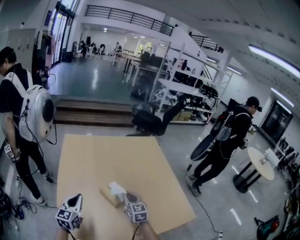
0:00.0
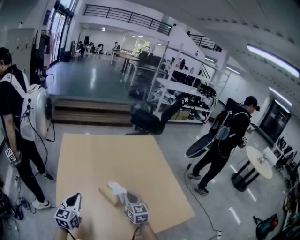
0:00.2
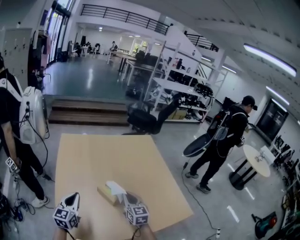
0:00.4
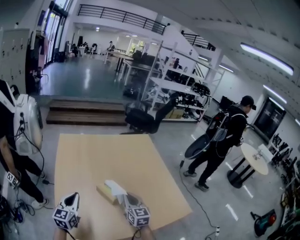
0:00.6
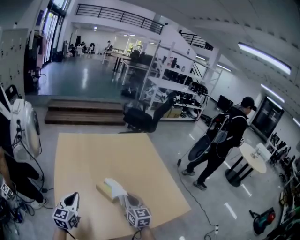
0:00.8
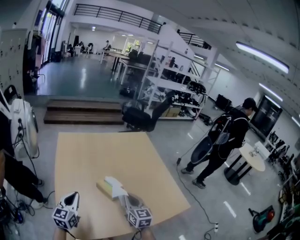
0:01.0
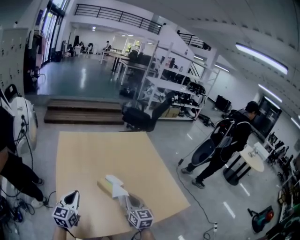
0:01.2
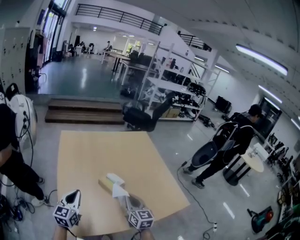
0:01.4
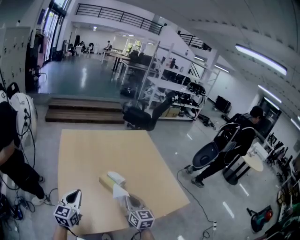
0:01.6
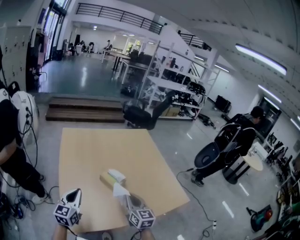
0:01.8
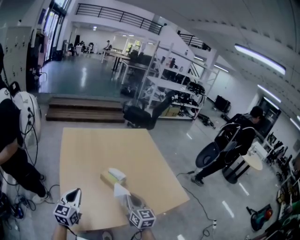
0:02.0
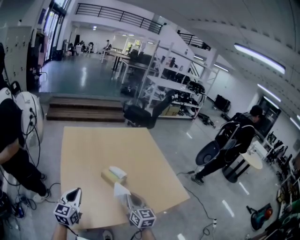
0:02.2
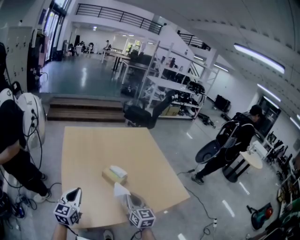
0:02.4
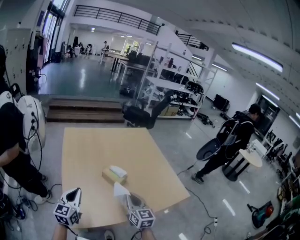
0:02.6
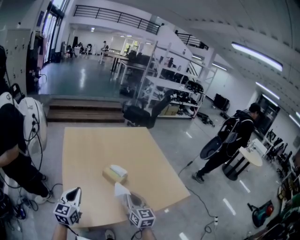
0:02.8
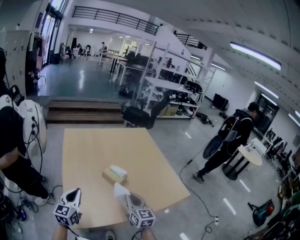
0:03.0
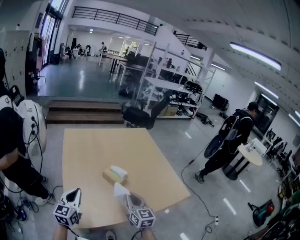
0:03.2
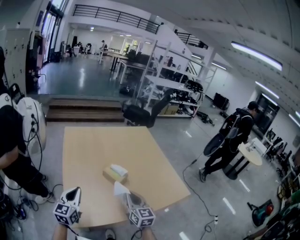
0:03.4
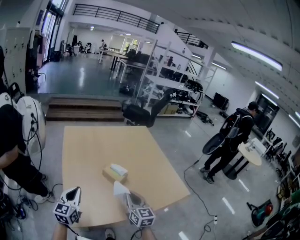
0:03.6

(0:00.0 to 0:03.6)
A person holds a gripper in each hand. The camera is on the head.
0:00.0 - 0:01.8: The right gripper travels backward by approximately 15 cm, while the left gripper is displaced backward by about 5 cm.
0:01.8 - 0:03.6: There are only small adjustments of the grippers.

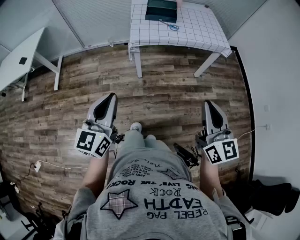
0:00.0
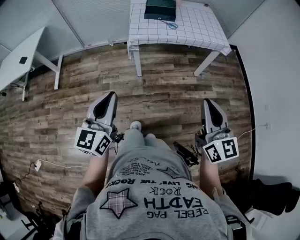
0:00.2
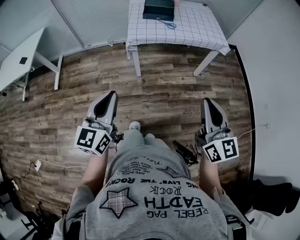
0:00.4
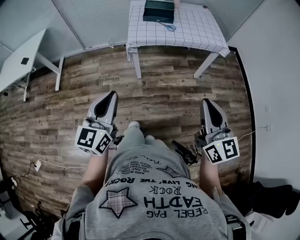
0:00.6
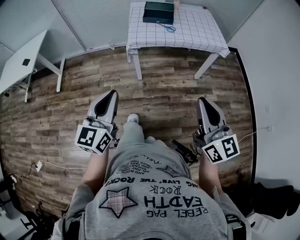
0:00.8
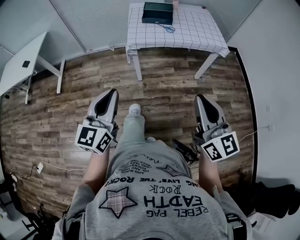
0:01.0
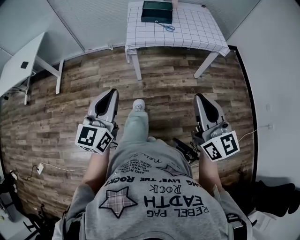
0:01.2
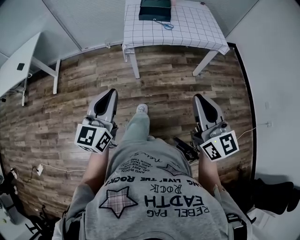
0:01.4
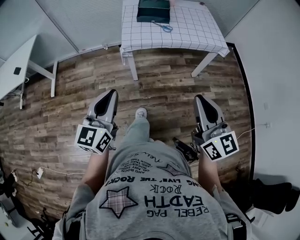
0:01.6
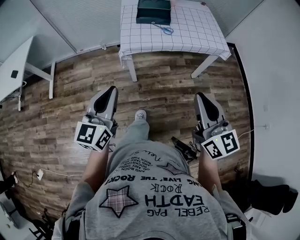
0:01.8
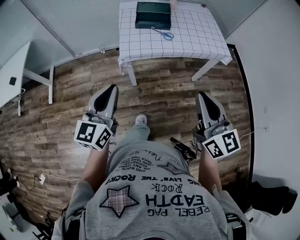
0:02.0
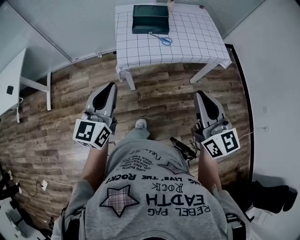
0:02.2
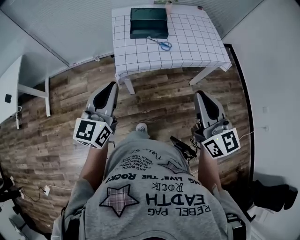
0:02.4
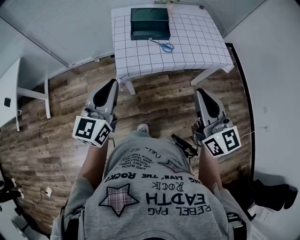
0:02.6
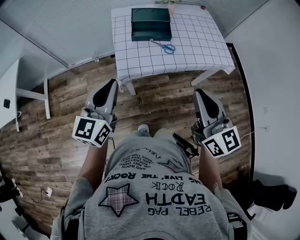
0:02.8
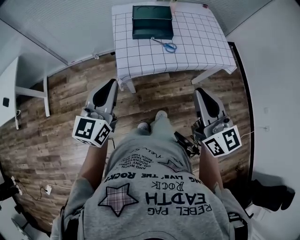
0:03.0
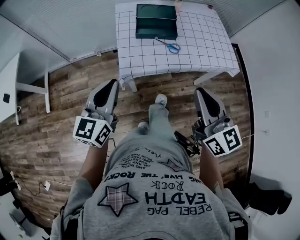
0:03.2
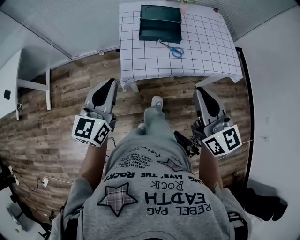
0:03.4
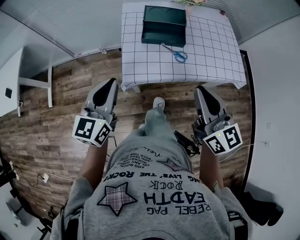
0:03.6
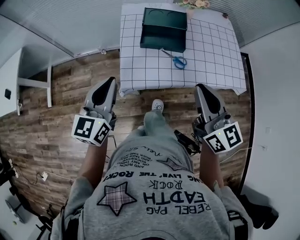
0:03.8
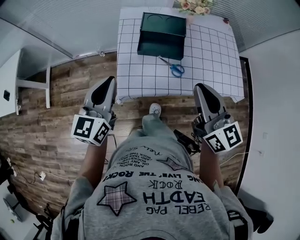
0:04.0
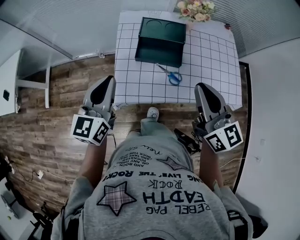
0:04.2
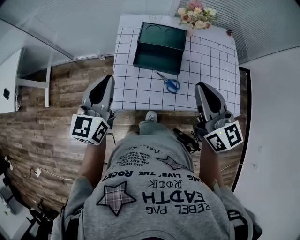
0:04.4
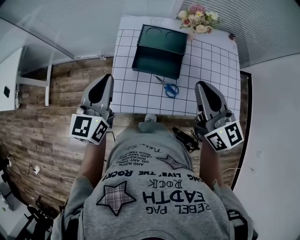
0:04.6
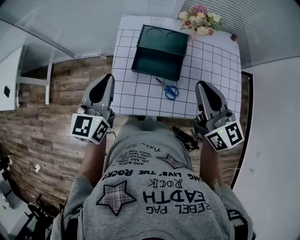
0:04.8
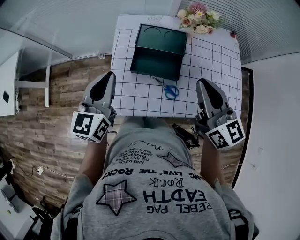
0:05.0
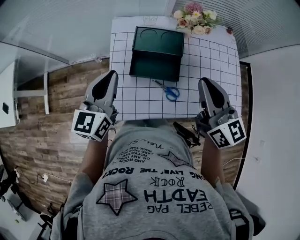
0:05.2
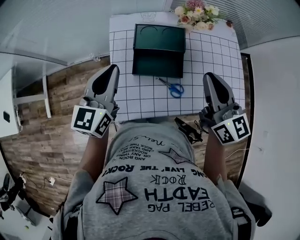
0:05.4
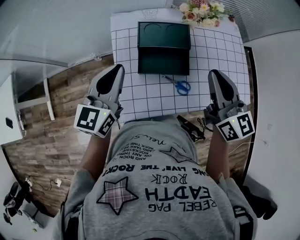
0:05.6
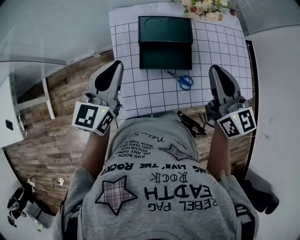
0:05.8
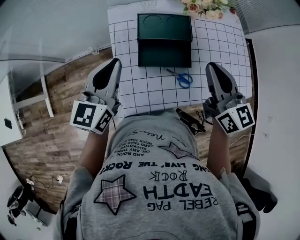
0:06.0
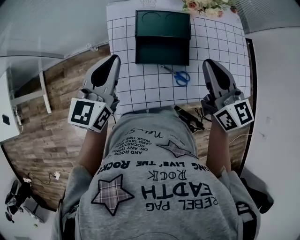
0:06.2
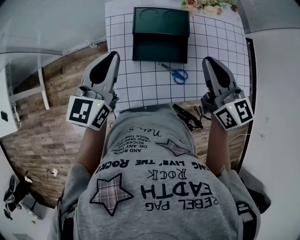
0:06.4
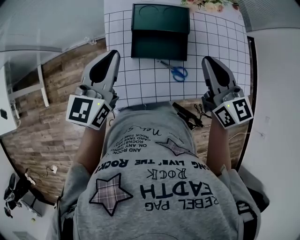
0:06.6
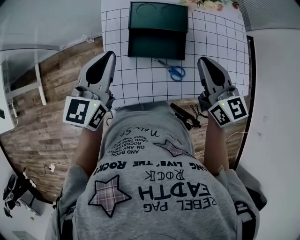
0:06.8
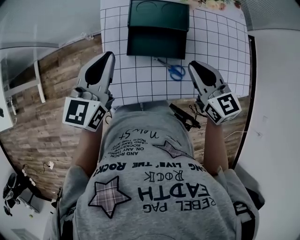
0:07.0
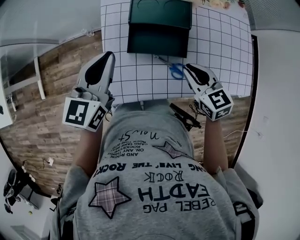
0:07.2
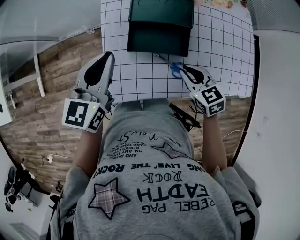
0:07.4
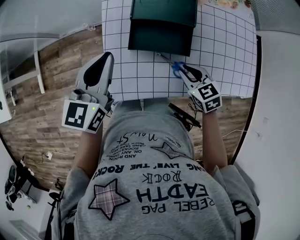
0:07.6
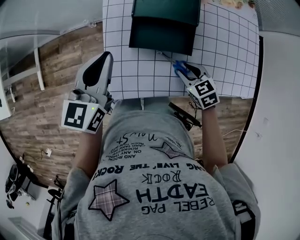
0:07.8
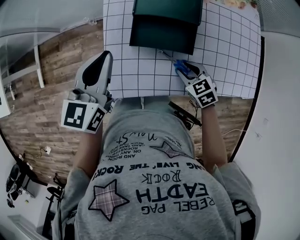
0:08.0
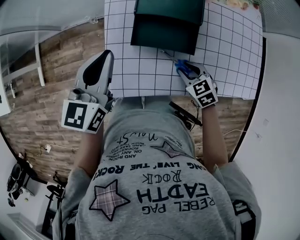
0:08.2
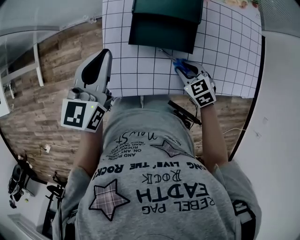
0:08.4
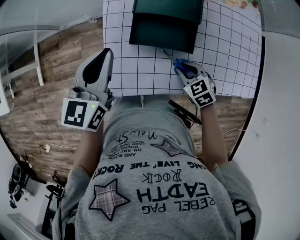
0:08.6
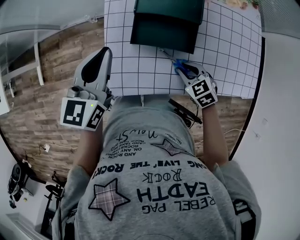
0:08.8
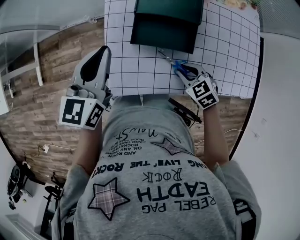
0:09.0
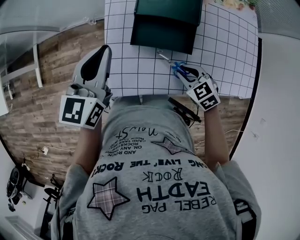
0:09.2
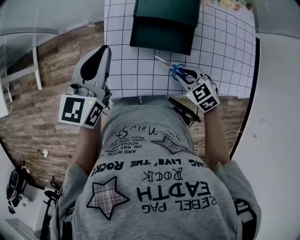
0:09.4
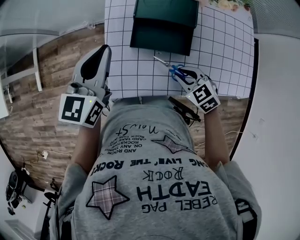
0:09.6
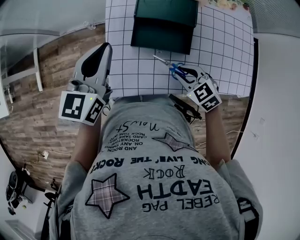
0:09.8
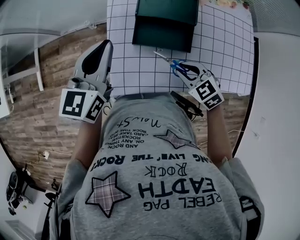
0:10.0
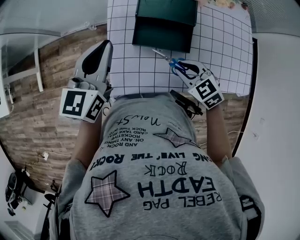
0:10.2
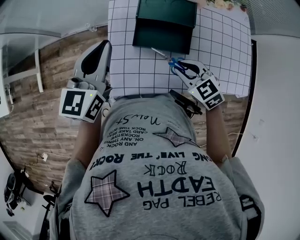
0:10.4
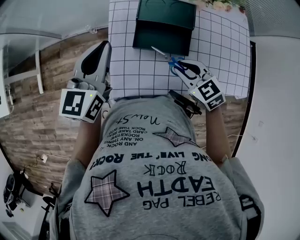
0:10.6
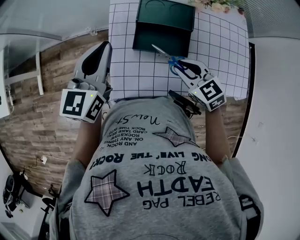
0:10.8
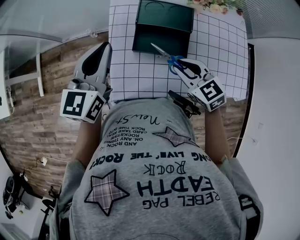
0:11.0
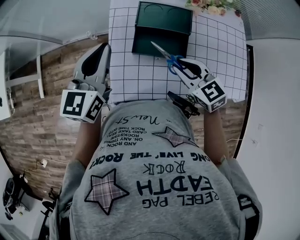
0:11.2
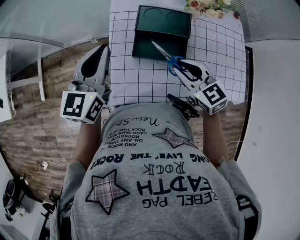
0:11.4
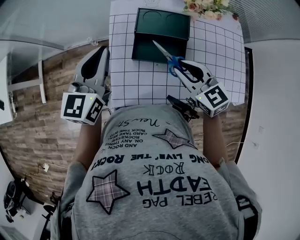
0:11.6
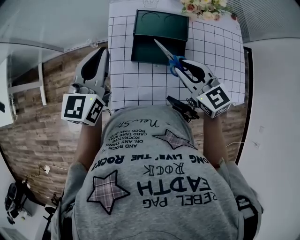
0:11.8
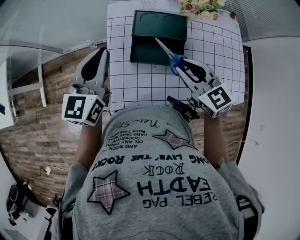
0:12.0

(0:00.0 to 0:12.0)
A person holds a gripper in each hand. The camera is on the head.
0:00.0 - 0:01.6: Both grippers move forward, some 5 cm.
0:01.6 - 0:03.0: The two grippers go roughly 25 cm forward.
0:03.0 - 0:04.4: The grippers both shift forward by about 25 cm.
0:04.4 - 0:06.0: The two grippers go about 10 cm forward.
0:06.0 - 0:07.6: The right gripper shifts approximately 25 cm downward, and tips its fingers downward by roughly 40 degrees. Meanwhile the left gripper changes place by roughly 5 cm.
0:07.6 - 0:09.0: The grippers move only a little.
0:09.0 - 0:10.4: The right gripper goes roughly 10 cm upward.
0:10.4 - 0:12.0: The right gripper is displaced upward by roughly 10 cm, and changes its angle by about 20 degrees.

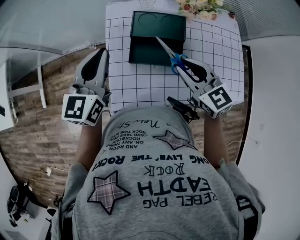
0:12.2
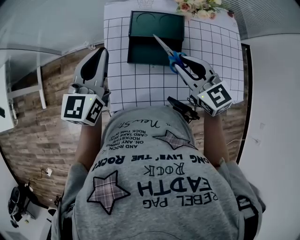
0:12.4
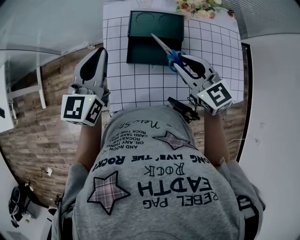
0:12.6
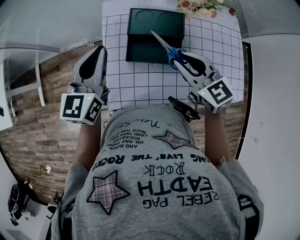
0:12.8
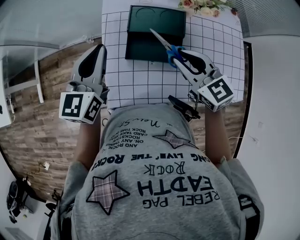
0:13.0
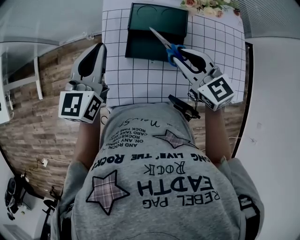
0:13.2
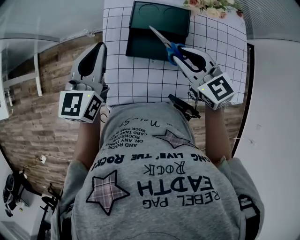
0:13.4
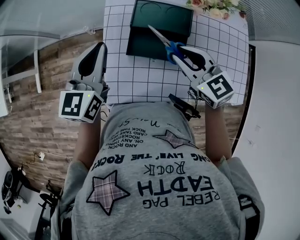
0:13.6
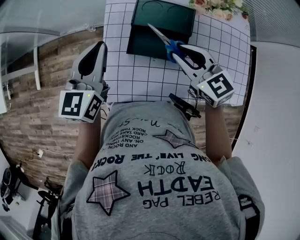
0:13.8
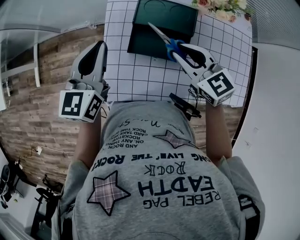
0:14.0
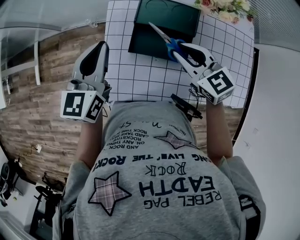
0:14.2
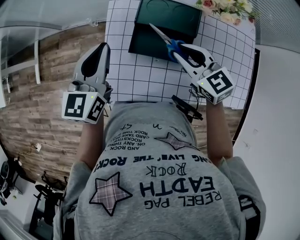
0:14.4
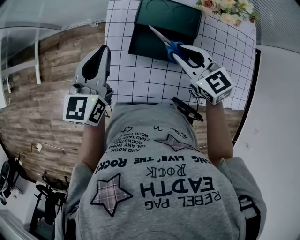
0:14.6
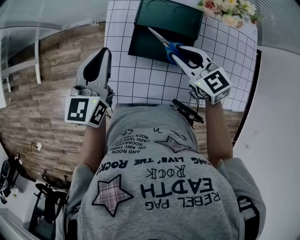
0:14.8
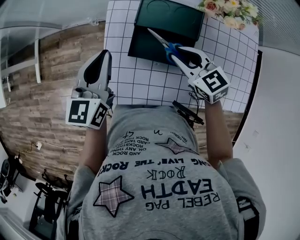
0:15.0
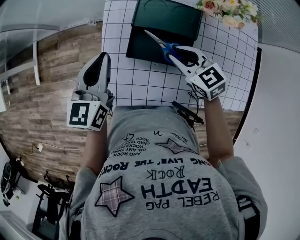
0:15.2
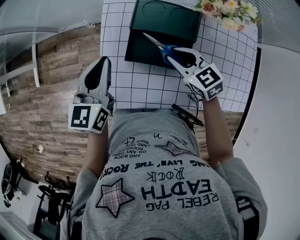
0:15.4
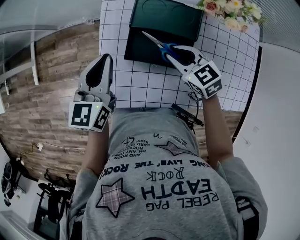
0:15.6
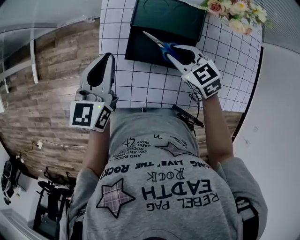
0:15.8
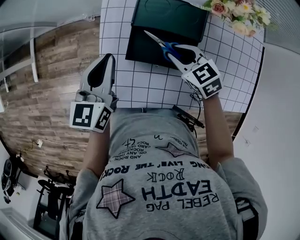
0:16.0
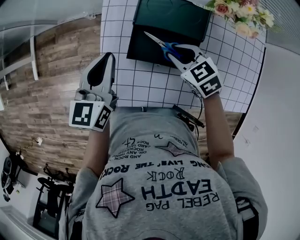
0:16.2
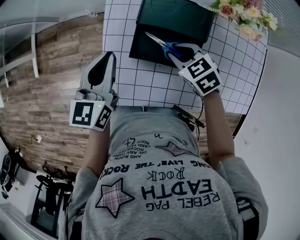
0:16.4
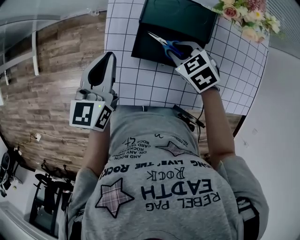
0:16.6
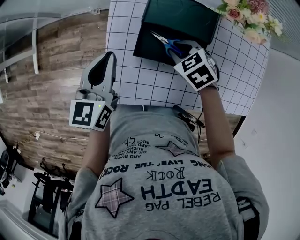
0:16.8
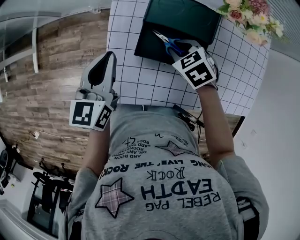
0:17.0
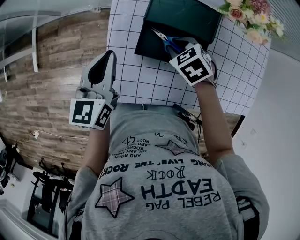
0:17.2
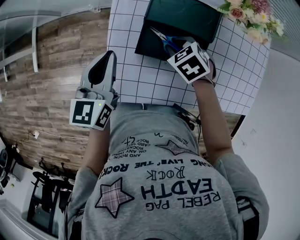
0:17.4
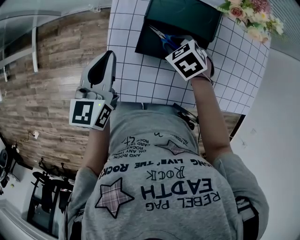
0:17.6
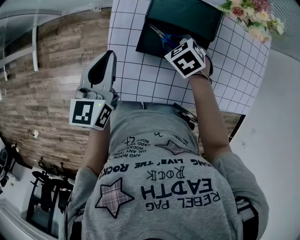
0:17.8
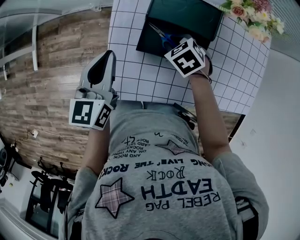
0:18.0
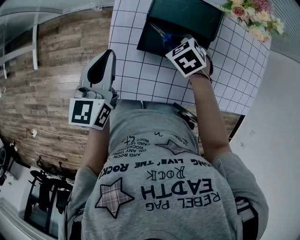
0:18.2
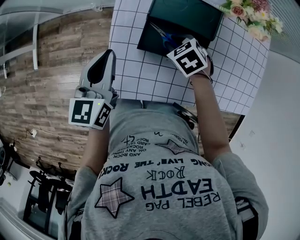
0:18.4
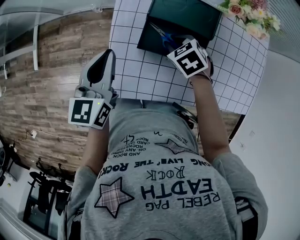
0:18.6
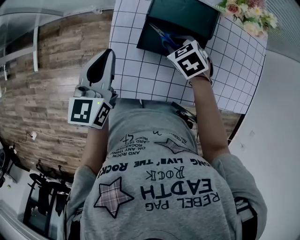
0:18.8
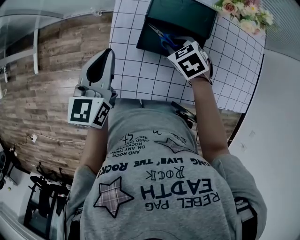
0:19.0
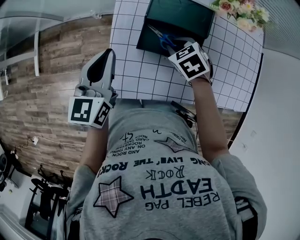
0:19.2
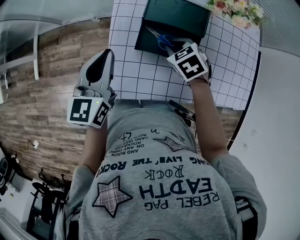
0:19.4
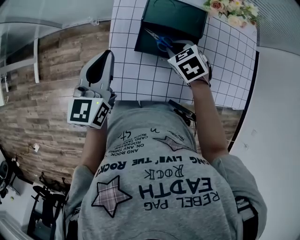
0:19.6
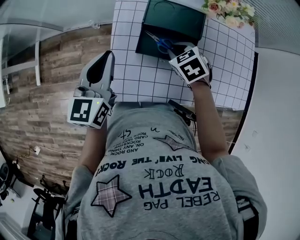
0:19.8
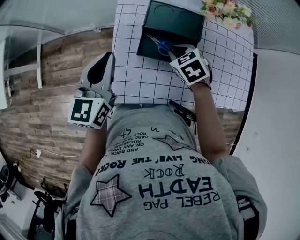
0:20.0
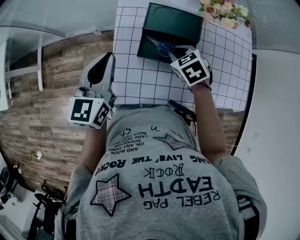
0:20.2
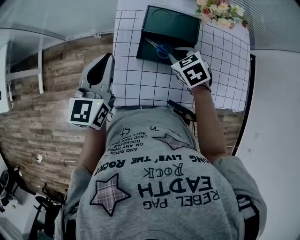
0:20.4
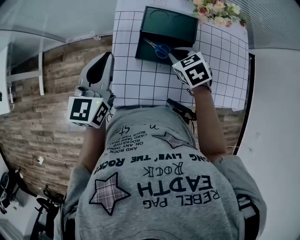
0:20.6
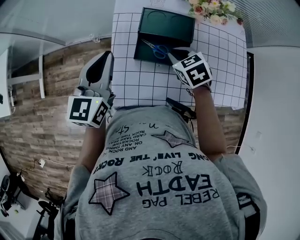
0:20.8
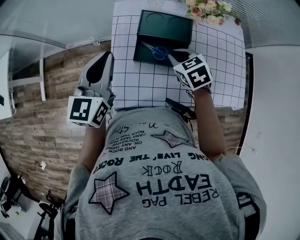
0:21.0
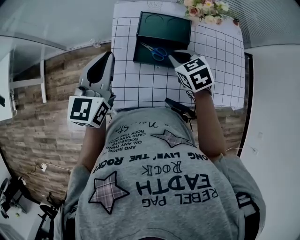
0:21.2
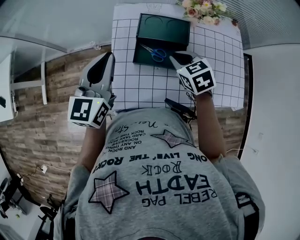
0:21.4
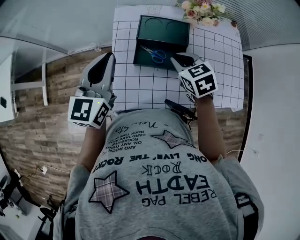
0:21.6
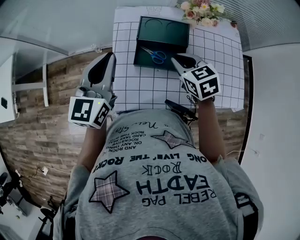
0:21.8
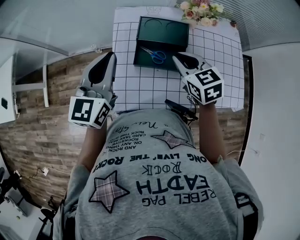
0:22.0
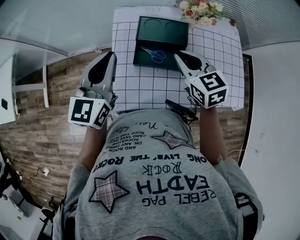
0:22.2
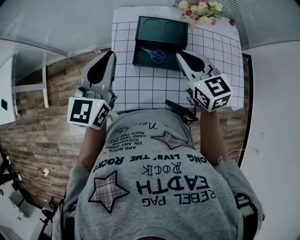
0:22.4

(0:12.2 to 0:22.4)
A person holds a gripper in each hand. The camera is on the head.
0:12.2 - 0:13.6: The grippers move only a little.
0:13.6 - 0:15.2: The right gripper moves downward, approximately 10 cm; the left gripper travels downward by roughly 5 cm.
0:15.2 - 0:16.6: The right gripper moves downward, approximately 5 cm, and turns by approximately 30 degrees.
0:16.6 - 0:18.0: The grippers make only small movements.
0:18.0 - 0:19.4: The right gripper moves upward, approximately 5 cm.
0:19.4 - 0:21.0: The two grippers go some 10 cm upward.
0:21.0 - 0:22.4: The right gripper is displaced upward by about 10 cm, and changes its angle by about 30 degrees.
